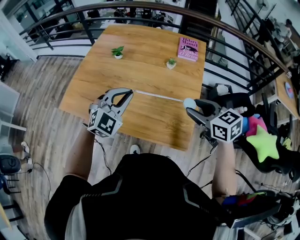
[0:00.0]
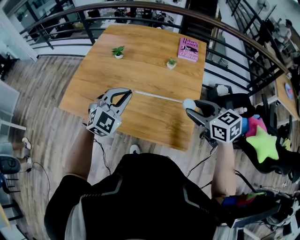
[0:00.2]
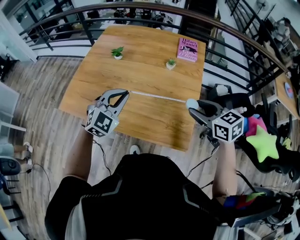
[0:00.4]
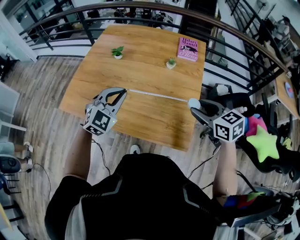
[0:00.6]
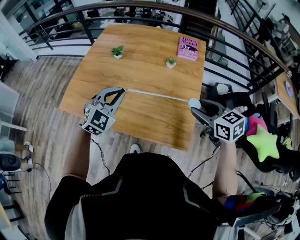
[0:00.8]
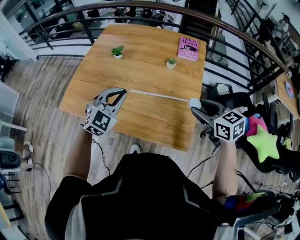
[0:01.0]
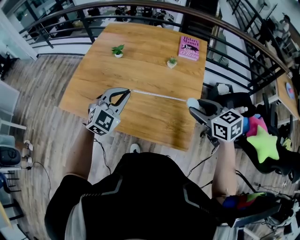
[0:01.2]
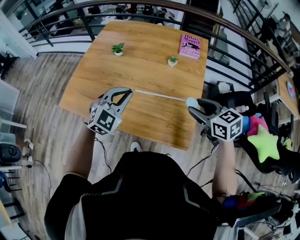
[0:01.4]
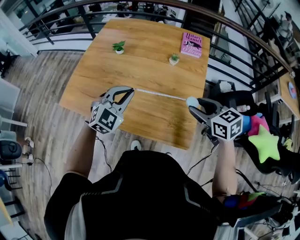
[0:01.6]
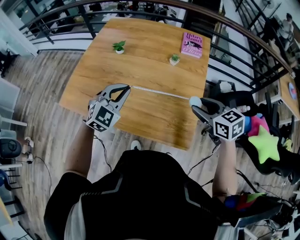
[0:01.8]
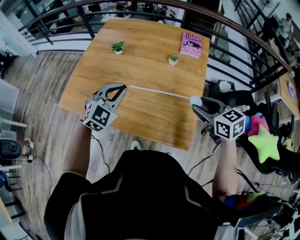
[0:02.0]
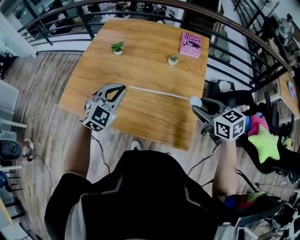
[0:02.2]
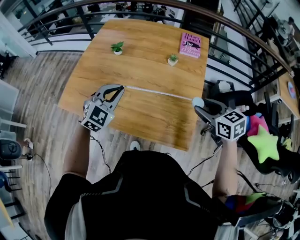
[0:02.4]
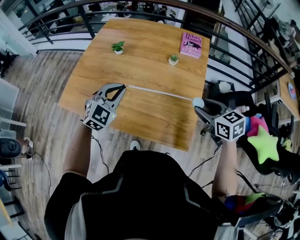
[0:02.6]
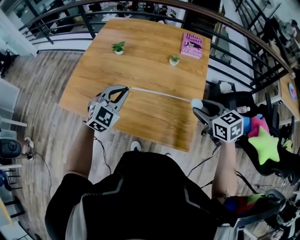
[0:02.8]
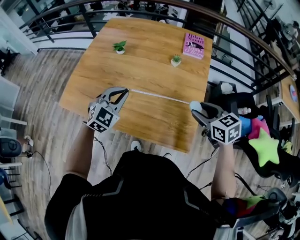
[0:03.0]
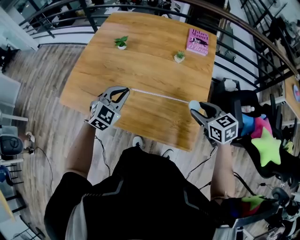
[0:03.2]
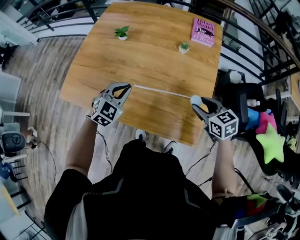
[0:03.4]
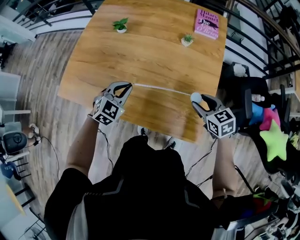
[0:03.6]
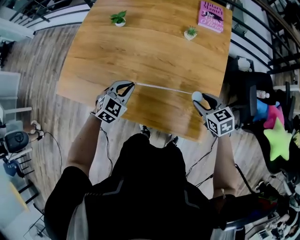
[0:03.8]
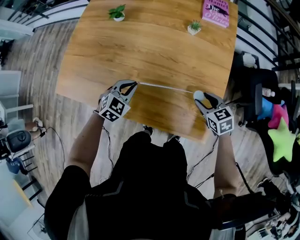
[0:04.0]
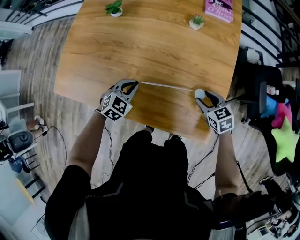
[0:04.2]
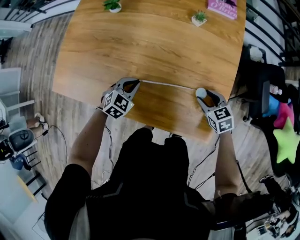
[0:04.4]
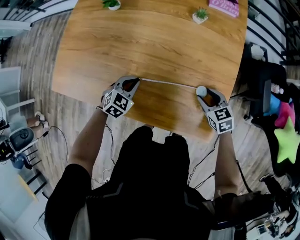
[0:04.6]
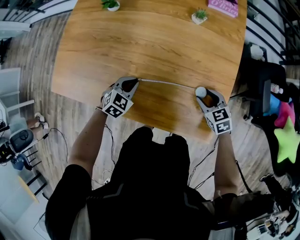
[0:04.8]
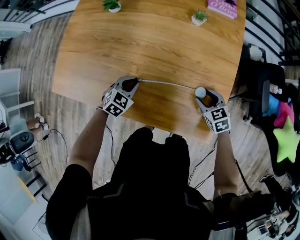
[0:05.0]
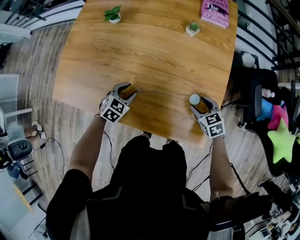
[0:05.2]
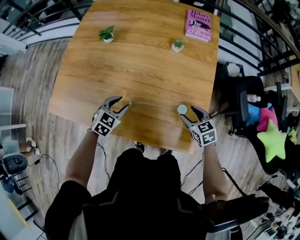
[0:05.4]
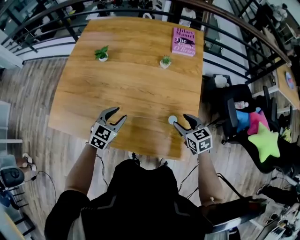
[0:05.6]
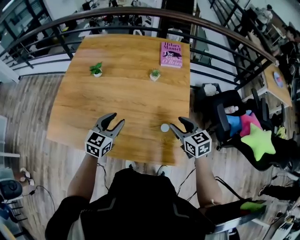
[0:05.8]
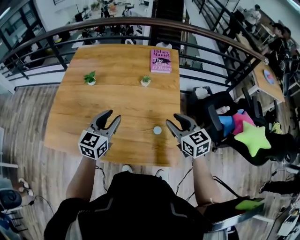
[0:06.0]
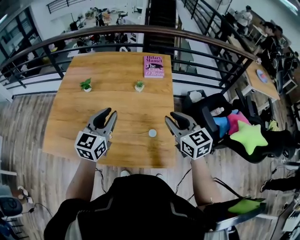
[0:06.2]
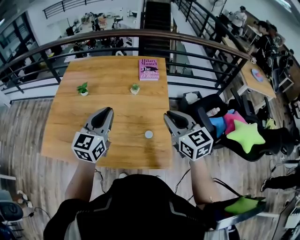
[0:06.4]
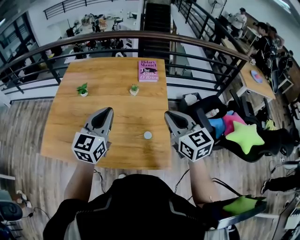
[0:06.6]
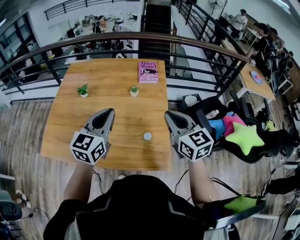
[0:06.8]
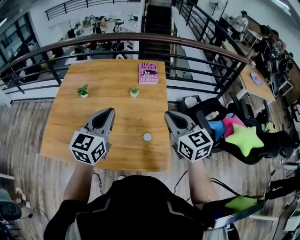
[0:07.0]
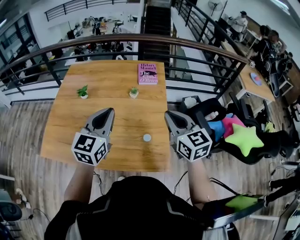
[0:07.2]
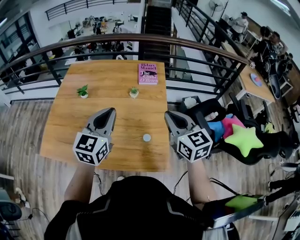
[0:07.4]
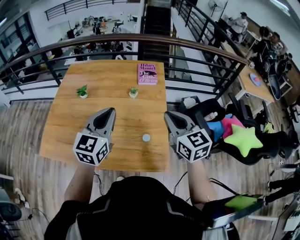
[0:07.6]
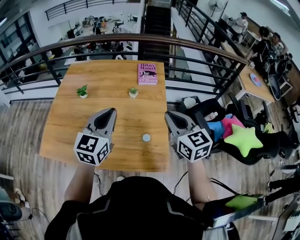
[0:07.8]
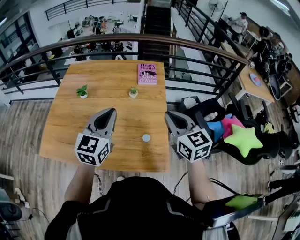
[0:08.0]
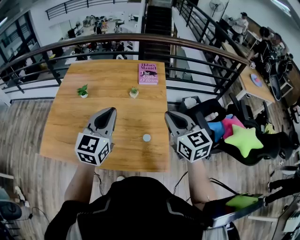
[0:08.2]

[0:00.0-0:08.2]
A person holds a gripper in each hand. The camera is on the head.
0:00.0 to 0:01.6: The grippers stay close to where they were, moving slightly.
0:01.6 to 0:03.2: The two grippers go some 5 cm downward.
0:03.2 to 0:05.0: Both grippers travel together downward, some 25 cm. The left gripper turns by roughly 20 degrees.
0:05.0 to 0:06.6: Both grippers travel together upward, approximately 40 cm. The left gripper tips its fingers upward by roughly 40 degrees, and opens, then closes once more; the right gripper tips its fingers upward by approximately 40 degrees, and closes its fingers.
0:06.6 to 0:08.2: The grippers move only a little.

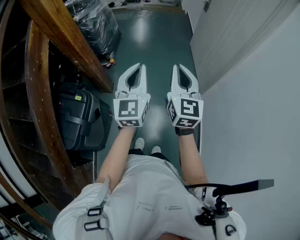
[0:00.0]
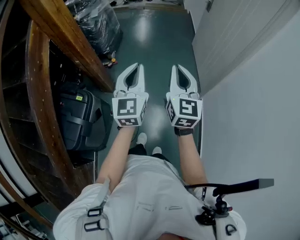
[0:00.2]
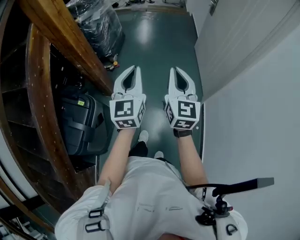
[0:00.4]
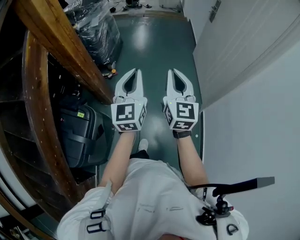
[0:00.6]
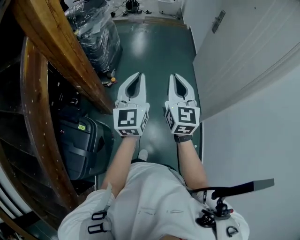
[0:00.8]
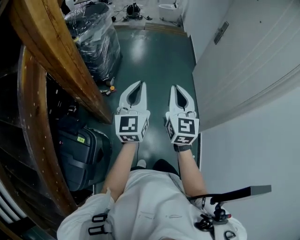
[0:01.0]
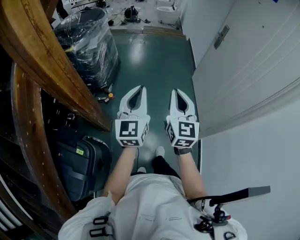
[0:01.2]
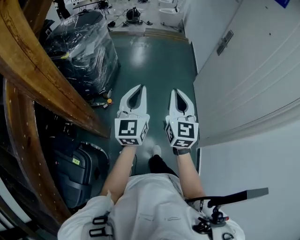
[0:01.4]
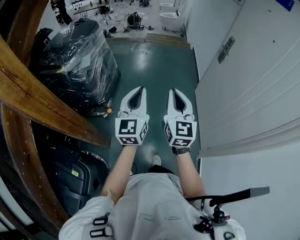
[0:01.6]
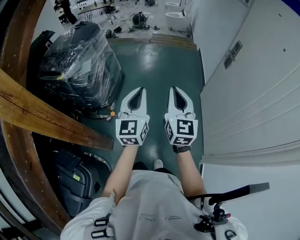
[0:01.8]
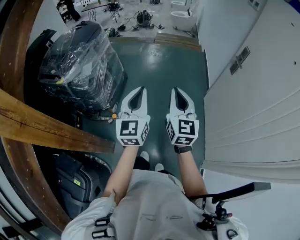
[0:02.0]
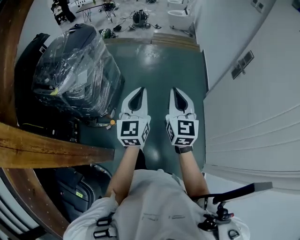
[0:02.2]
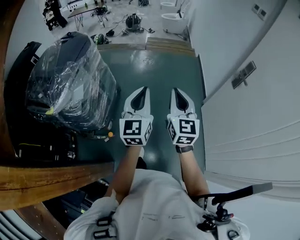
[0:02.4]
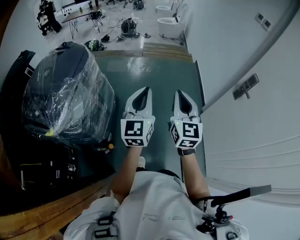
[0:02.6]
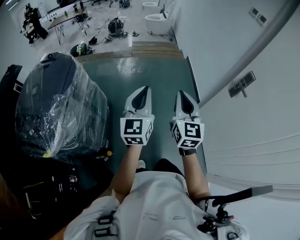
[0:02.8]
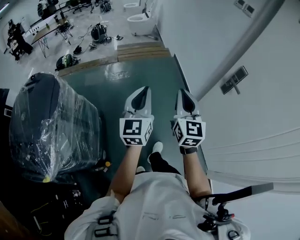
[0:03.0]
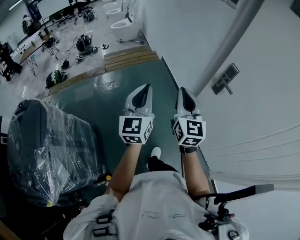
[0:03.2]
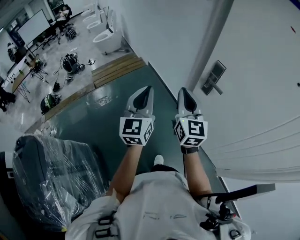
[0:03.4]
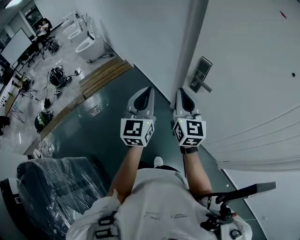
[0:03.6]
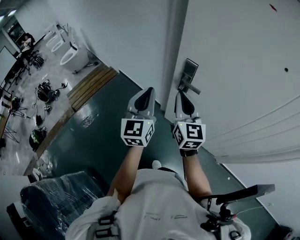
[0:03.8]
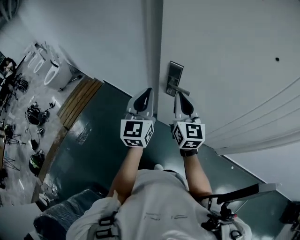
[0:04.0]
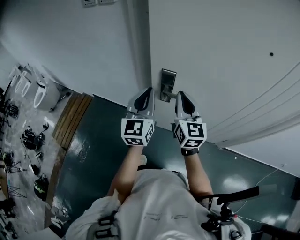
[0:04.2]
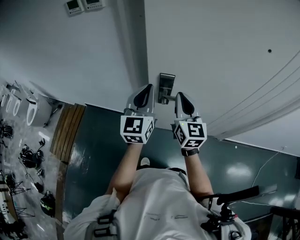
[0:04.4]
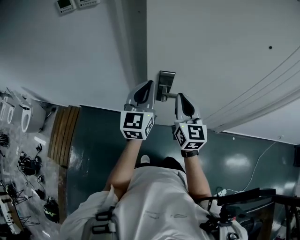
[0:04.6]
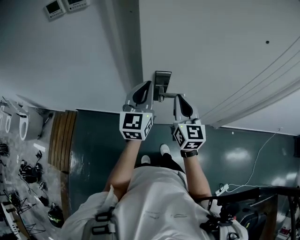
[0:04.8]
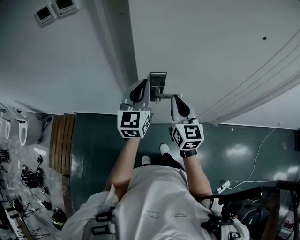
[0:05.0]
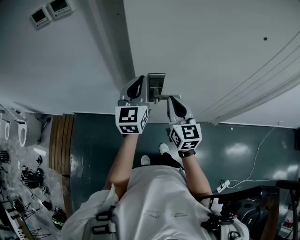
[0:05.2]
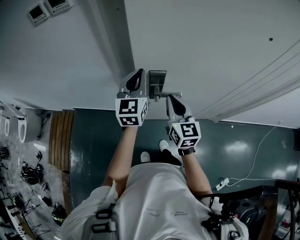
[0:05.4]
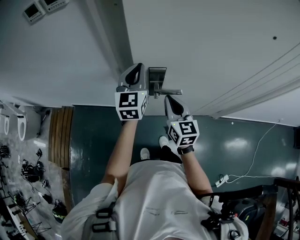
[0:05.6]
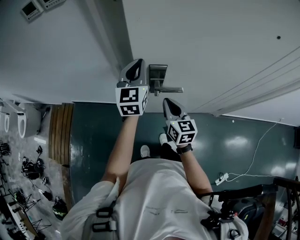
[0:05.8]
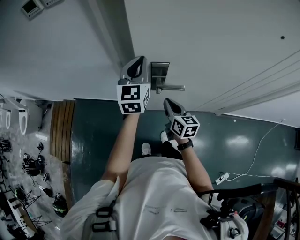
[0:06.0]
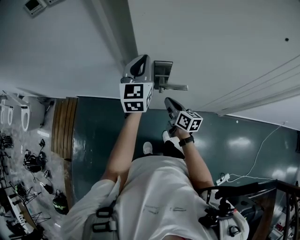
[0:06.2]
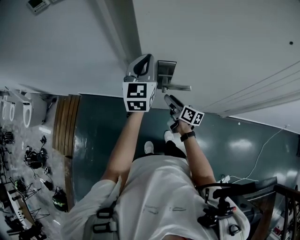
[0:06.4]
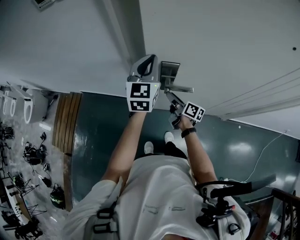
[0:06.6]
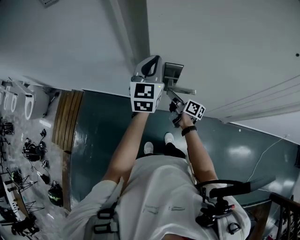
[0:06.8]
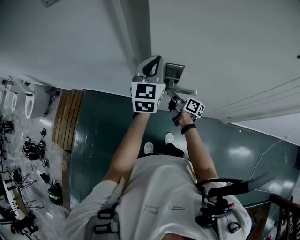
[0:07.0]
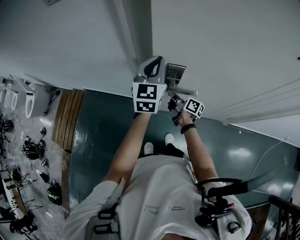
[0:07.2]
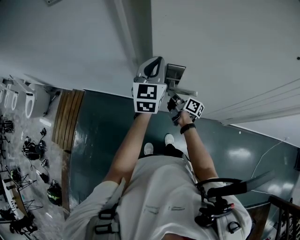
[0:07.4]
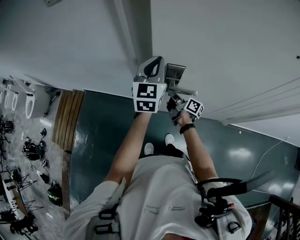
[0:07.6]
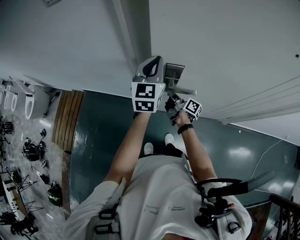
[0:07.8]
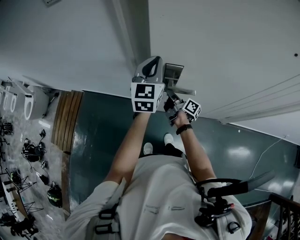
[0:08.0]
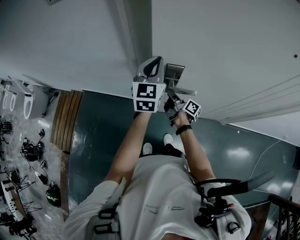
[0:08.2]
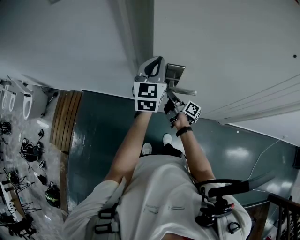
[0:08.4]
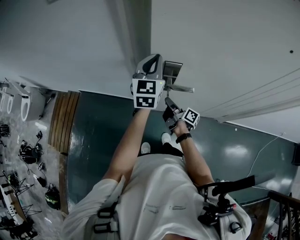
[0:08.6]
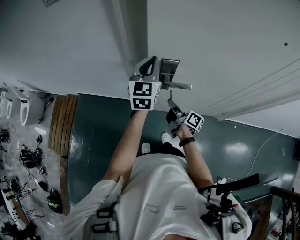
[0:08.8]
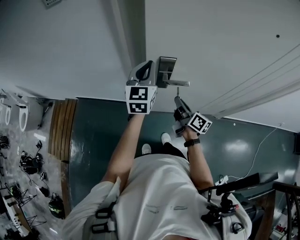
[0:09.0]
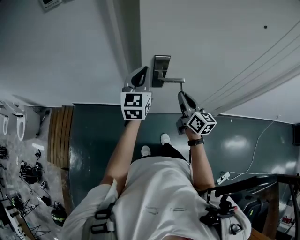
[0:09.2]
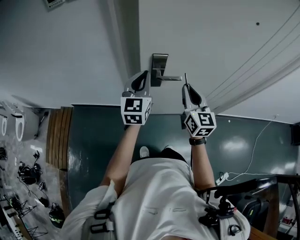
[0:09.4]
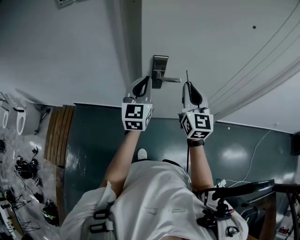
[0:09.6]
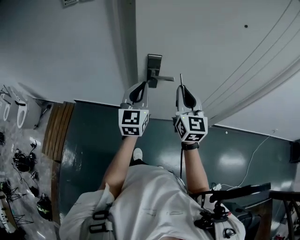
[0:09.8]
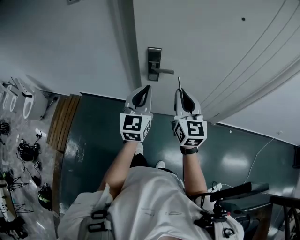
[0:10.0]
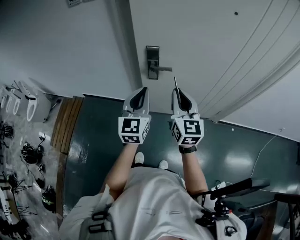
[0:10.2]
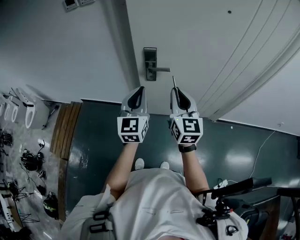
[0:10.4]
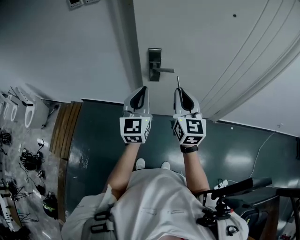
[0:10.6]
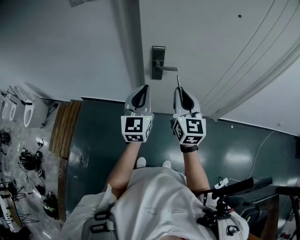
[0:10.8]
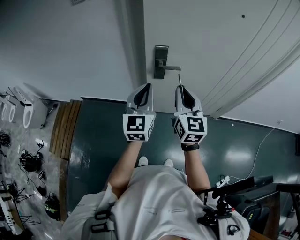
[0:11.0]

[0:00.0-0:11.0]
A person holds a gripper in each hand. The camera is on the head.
0:00.0 to 0:01.6: Both grippers are carried forward, some 50 cm.
0:01.6 to 0:03.2: Both grippers are carried approximately 60 cm. The left gripper changes its angle by about 30 degrees. The right gripper turns by about 30 degrees.
0:03.2 to 0:04.8: The right gripper changes place by roughly 35 cm, and turns by some 60 degrees; the left gripper changes place by approximately 50 cm, and swivels about 70 degrees.
0:04.8 to 0:06.2: The right gripper moves downward, about 20 cm, and changes its angle by some 40 degrees. Meanwhile the left gripper travels forward by roughly 10 cm.
0:06.2 to 0:07.8: The right gripper moves forward, roughly 5 cm, swivels some 40 degrees, and opens, then closes once more.
0:07.8 to 0:09.4: The left gripper travels backward by about 10 cm, while the right gripper shifts about 25 cm upward and backward, and rotates around the line of its fingers by approximately 70 degrees, counterclockwise from behind.
0:09.4 to 0:11.0: The left gripper travels backward by some 15 cm. The right gripper goes approximately 15 cm backward and upward.

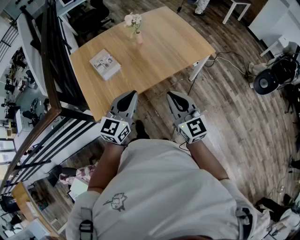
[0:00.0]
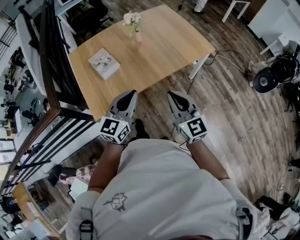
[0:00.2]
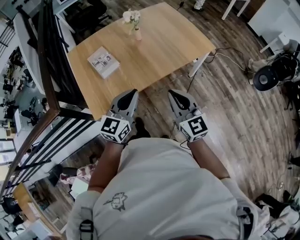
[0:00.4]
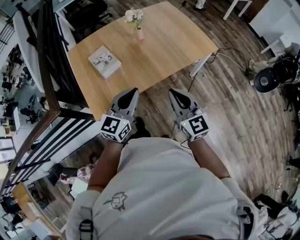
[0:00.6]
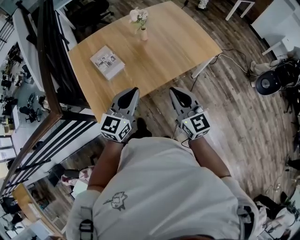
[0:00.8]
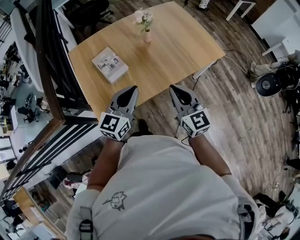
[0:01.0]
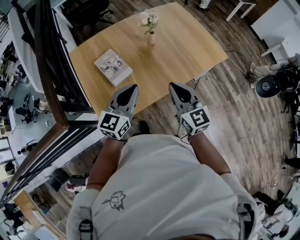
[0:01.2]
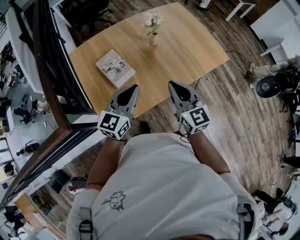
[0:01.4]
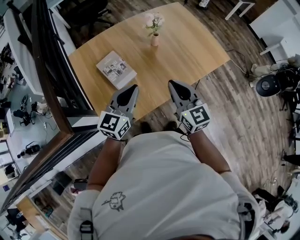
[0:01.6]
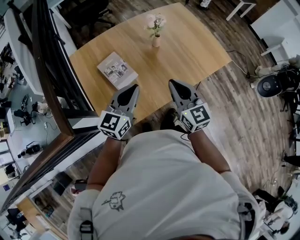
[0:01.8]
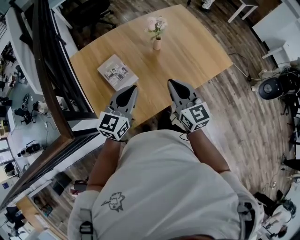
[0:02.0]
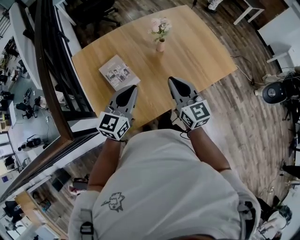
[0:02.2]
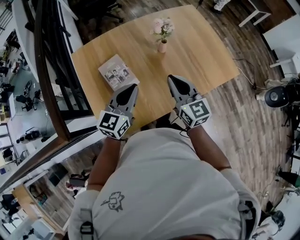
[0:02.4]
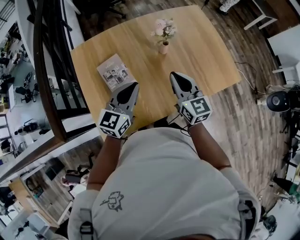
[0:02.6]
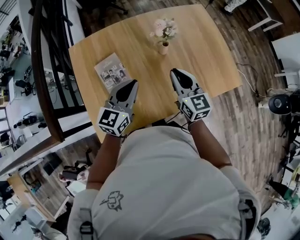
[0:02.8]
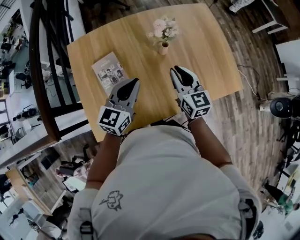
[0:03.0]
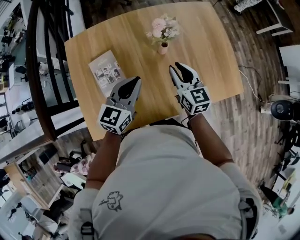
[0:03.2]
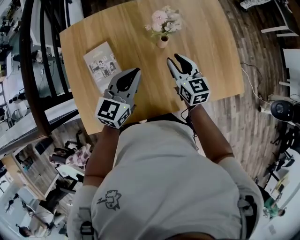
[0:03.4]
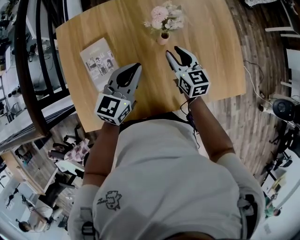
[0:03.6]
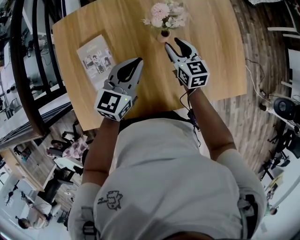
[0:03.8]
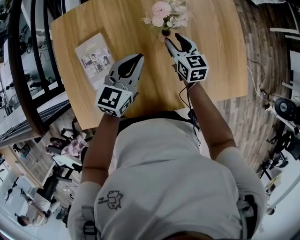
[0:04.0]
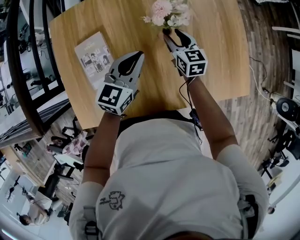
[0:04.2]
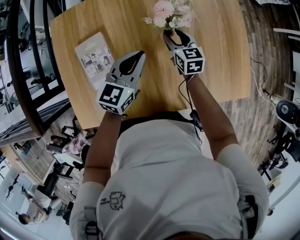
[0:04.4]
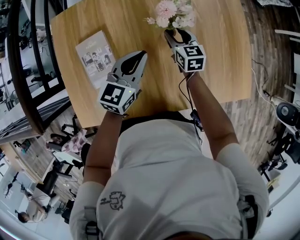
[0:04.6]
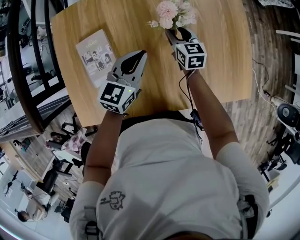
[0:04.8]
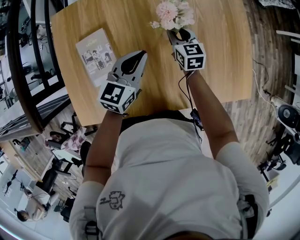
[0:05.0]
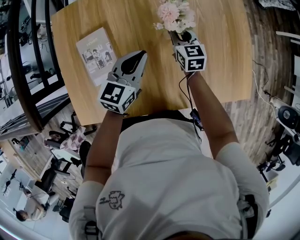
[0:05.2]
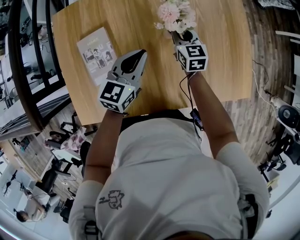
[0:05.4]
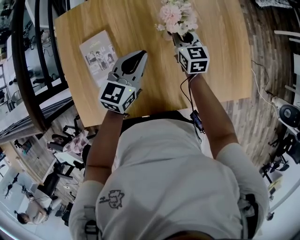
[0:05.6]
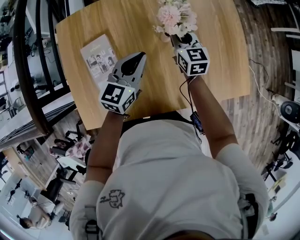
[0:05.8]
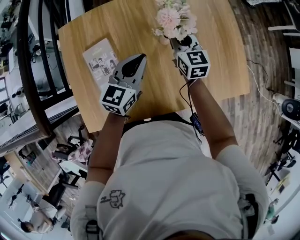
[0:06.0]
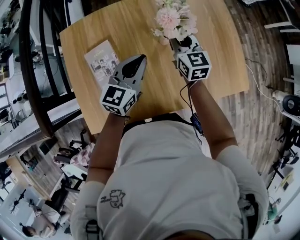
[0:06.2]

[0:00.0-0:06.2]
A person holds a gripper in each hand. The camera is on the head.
0:00.0 to 0:01.6: Both grippers travel together forward and to the left, some 25 cm.
0:01.6 to 0:03.2: The grippers both shift forward by roughly 25 cm. The right gripper opens up.
0:03.2 to 0:04.6: The right gripper goes some 25 cm downward and forward, and opens its fingers; the left gripper travels forward and downward by roughly 15 cm.
0:04.6 to 0:06.2: The left gripper moves upward, some 5 cm. The right gripper goes approximately 15 cm upward, and closes.
